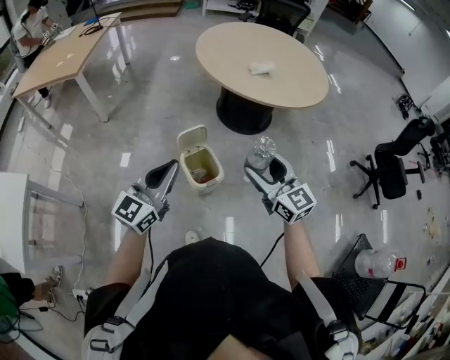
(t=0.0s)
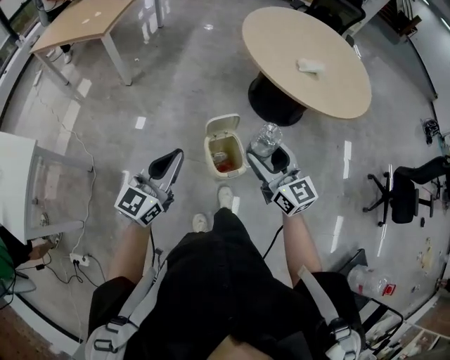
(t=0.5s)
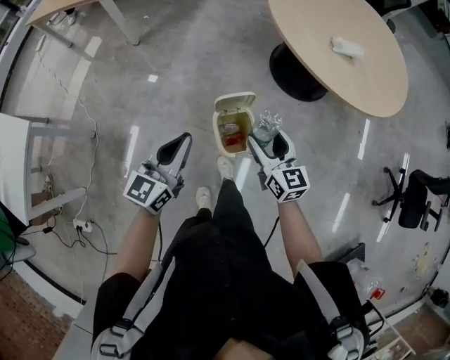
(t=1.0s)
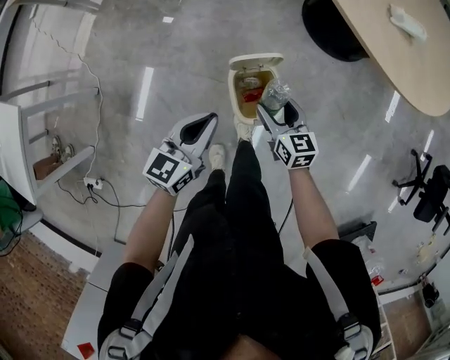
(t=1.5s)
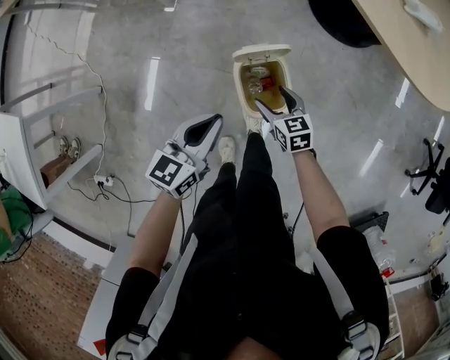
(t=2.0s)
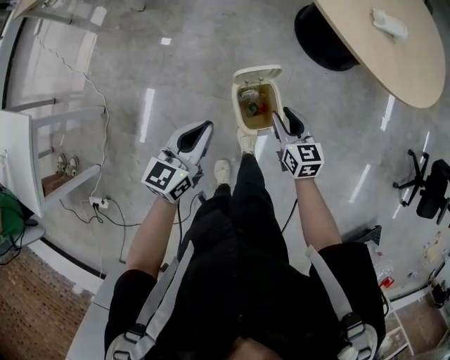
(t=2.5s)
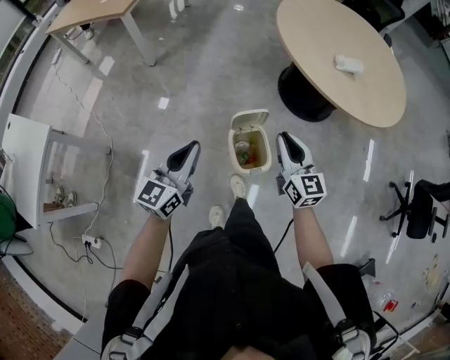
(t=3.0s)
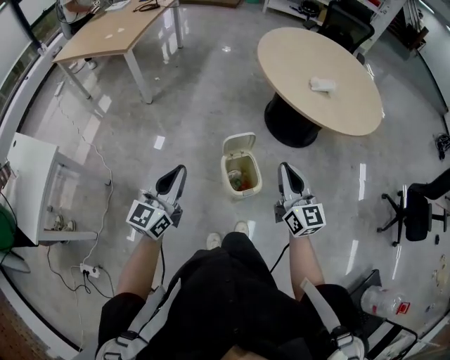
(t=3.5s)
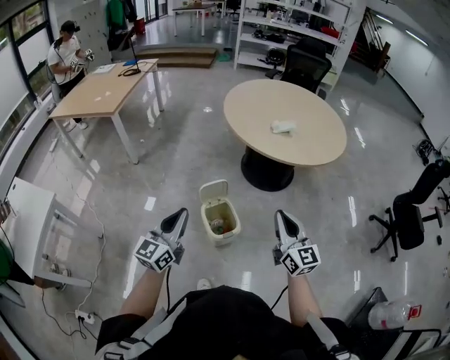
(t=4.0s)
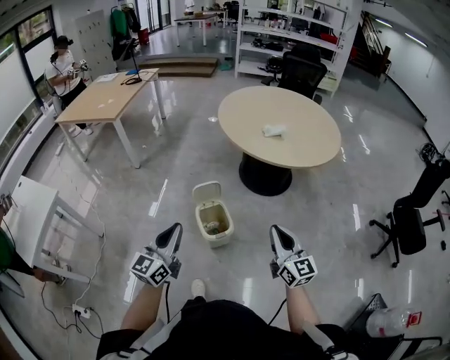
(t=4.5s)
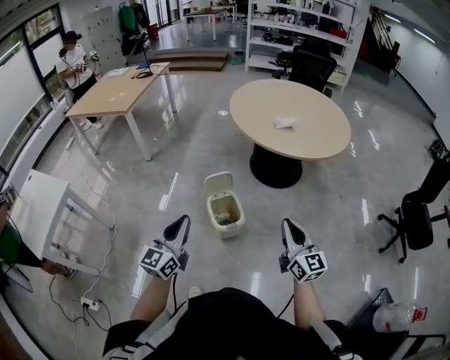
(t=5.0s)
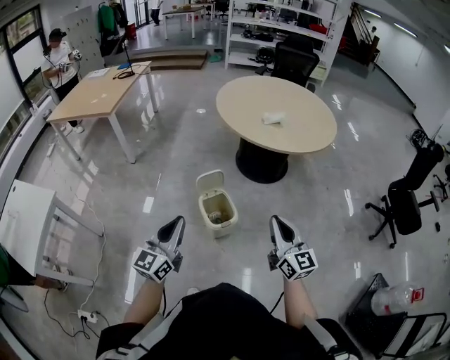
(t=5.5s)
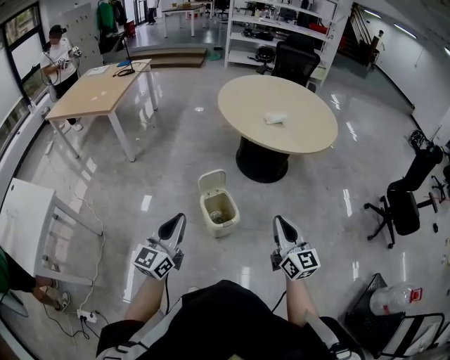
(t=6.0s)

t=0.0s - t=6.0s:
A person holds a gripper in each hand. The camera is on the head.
t=0.0s - t=2.0s: Both grippers travel together downward and forward, roughly 40 cm. The left gripper changes its angle by some 40 degrees; the right gripper tilts its fingers some 40 degrees downward.
t=2.0s - t=4.0s: The right gripper shifts some 50 cm upward and backward, tips its fingers upward by some 50 degrees, and closes its fingers; the left gripper shifts approximately 30 cm upward and backward, and swivels roughly 30 degrees.
t=4.0s - t=6.0s: The grippers both shift backward by approximately 10 cm.

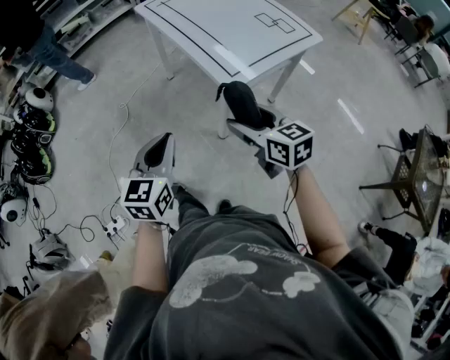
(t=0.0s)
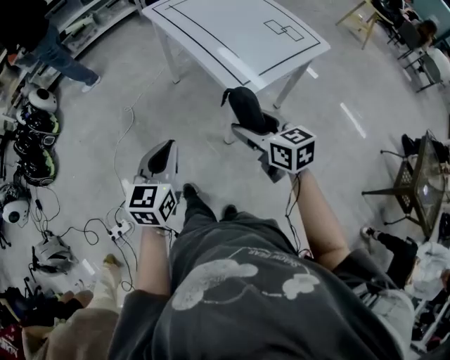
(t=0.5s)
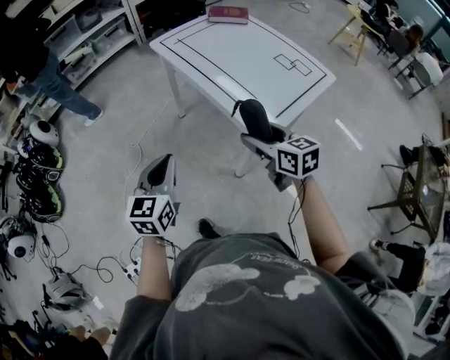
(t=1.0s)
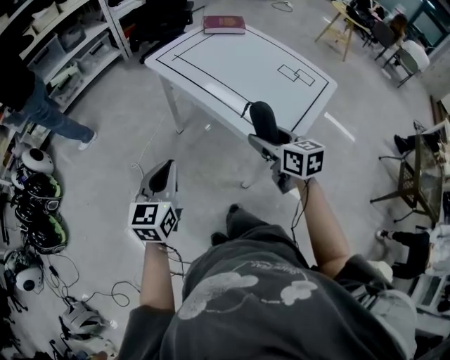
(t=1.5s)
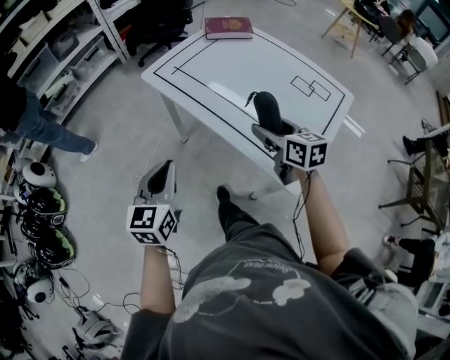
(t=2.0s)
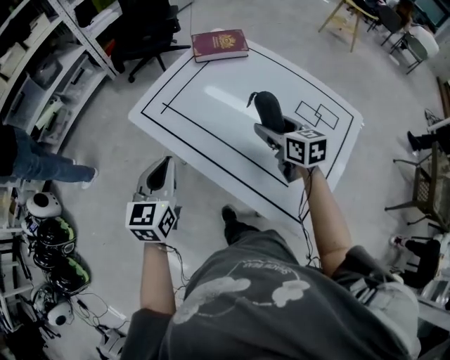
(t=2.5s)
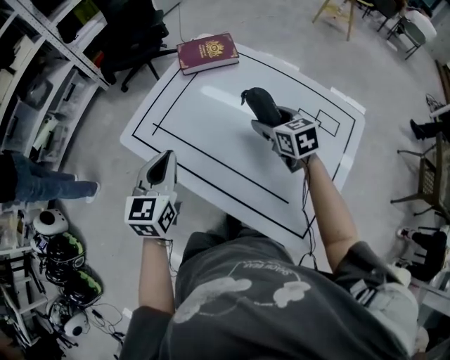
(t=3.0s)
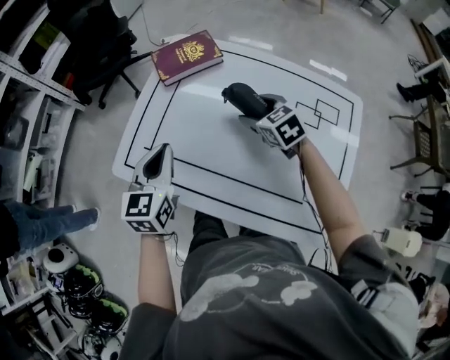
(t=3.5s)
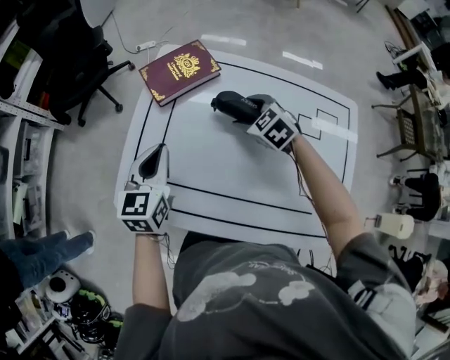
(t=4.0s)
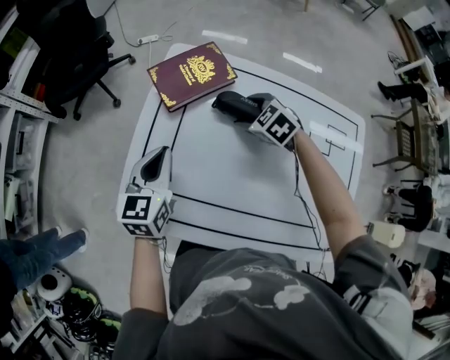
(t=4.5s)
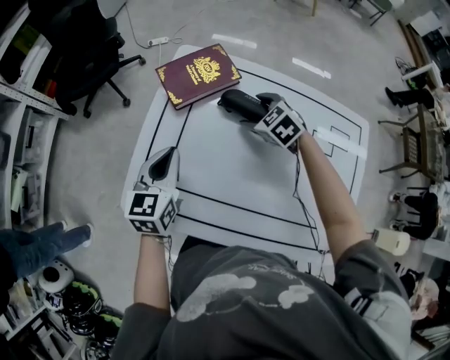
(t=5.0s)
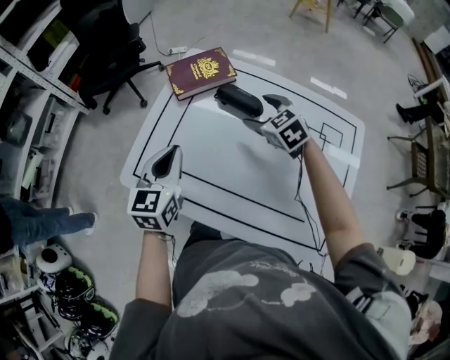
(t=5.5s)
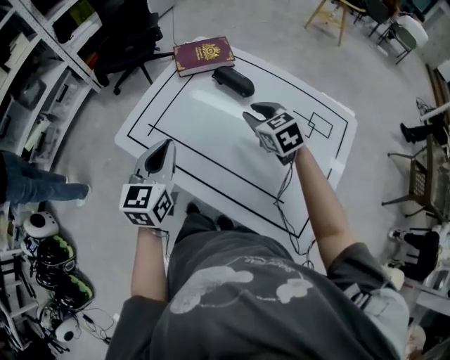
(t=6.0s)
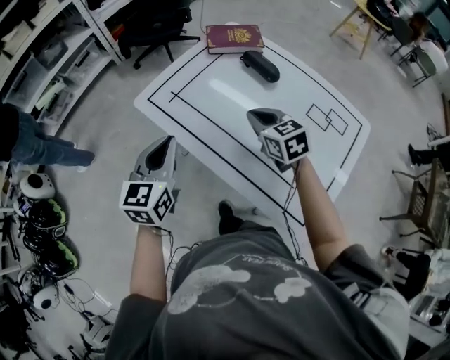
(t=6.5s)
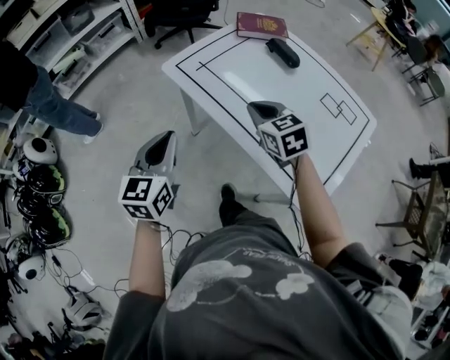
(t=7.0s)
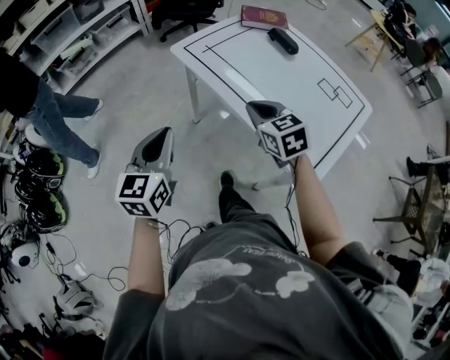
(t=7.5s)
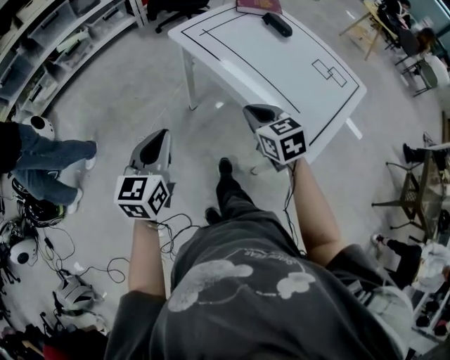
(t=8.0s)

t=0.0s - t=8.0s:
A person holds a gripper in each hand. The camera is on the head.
t=0.0s - t=2.0s: The left gripper travels forward and to the left by about 40 cm. Meanwhile the right gripper travels forward by roughly 35 cm, and changes its angle by roughly 20 degrees.
t=2.0s - t=4.0s: Both grippers travel together forward, about 40 cm. The right gripper swivels some 40 degrees; the left gripper rotates about 30 degrees.
t=4.0s - t=6.0s: The left gripper shifts about 20 cm backward; the right gripper shifts approximately 15 cm backward and upward, and closes.
t=6.0s - t=8.0s: The pair of grippers is taken backward and to the left, approximately 40 cm.

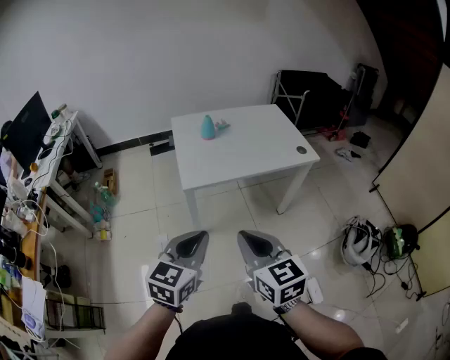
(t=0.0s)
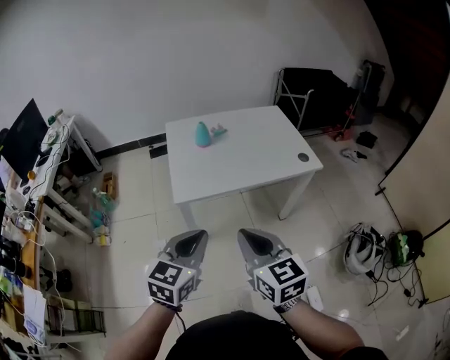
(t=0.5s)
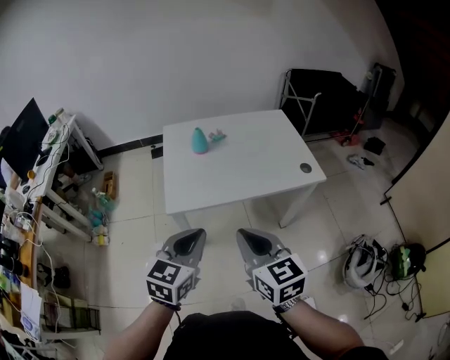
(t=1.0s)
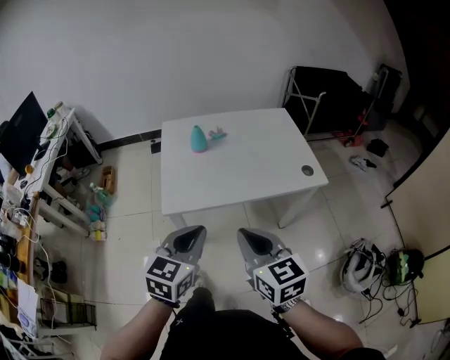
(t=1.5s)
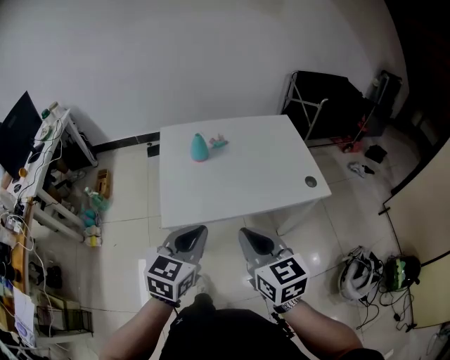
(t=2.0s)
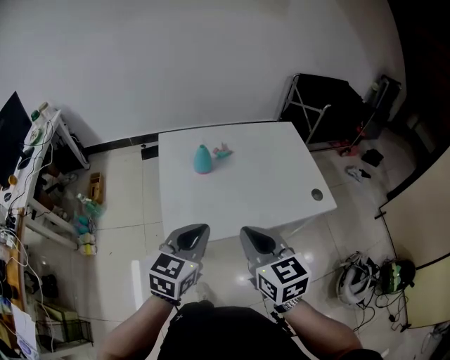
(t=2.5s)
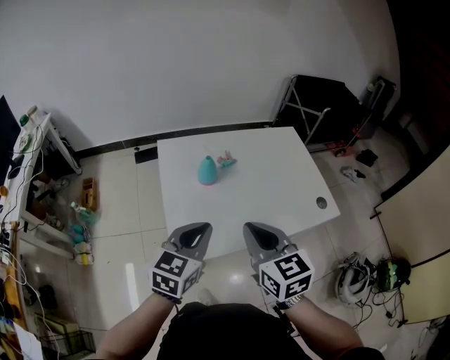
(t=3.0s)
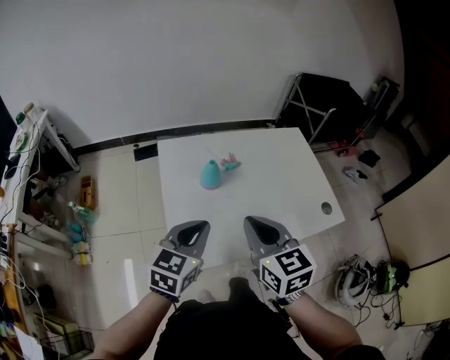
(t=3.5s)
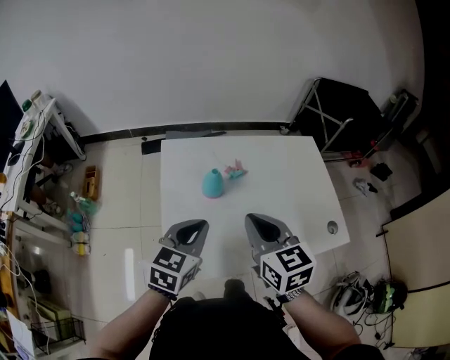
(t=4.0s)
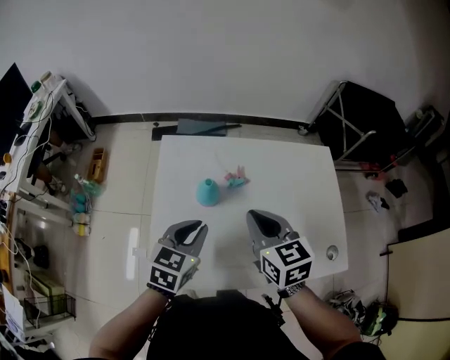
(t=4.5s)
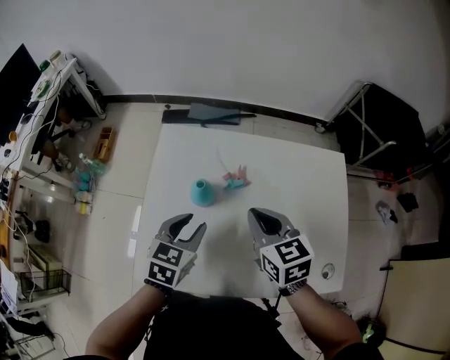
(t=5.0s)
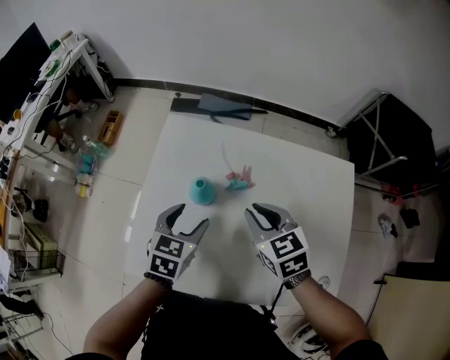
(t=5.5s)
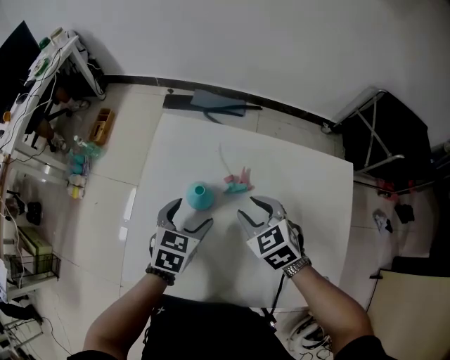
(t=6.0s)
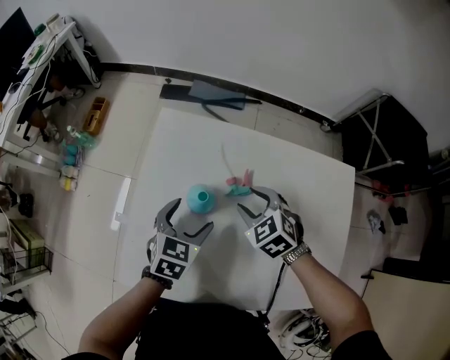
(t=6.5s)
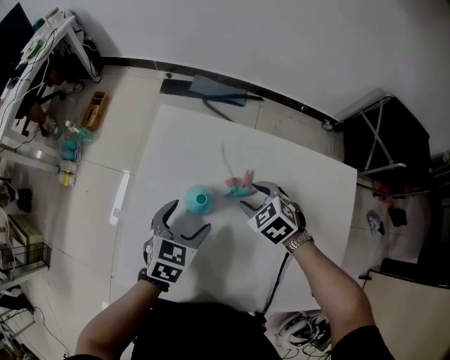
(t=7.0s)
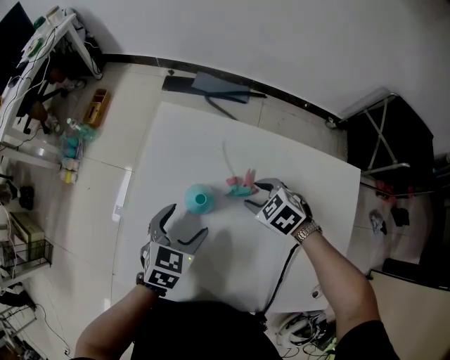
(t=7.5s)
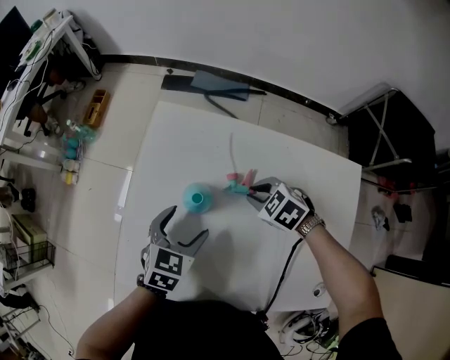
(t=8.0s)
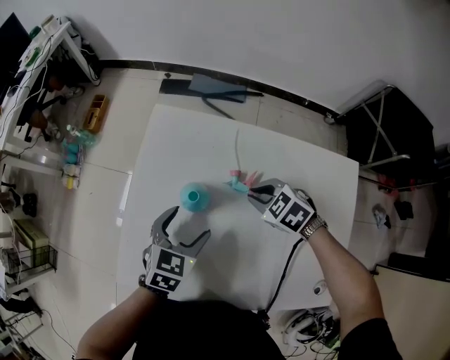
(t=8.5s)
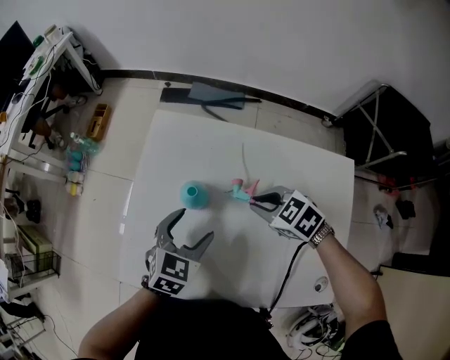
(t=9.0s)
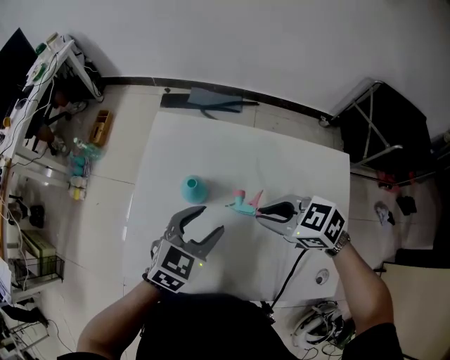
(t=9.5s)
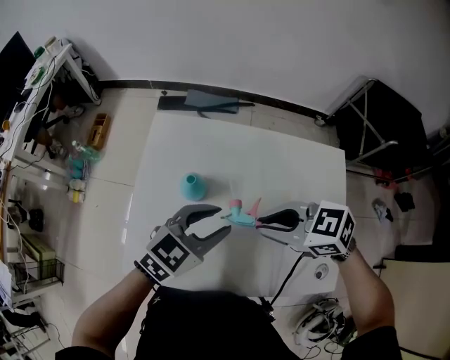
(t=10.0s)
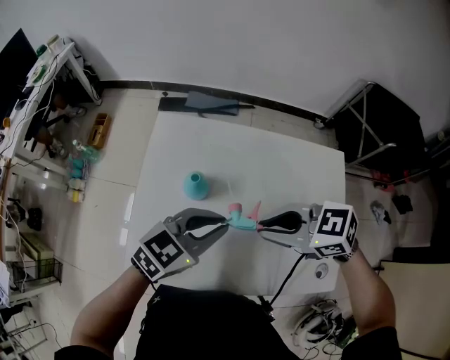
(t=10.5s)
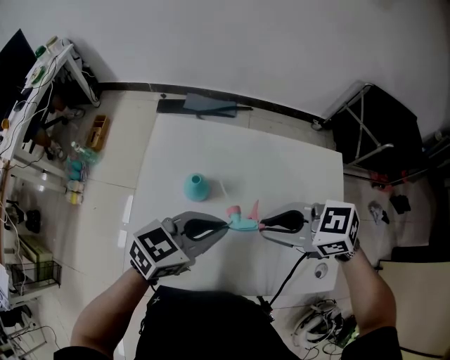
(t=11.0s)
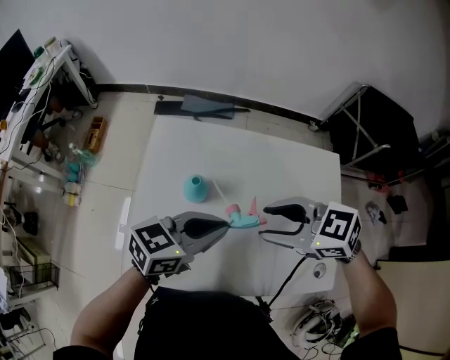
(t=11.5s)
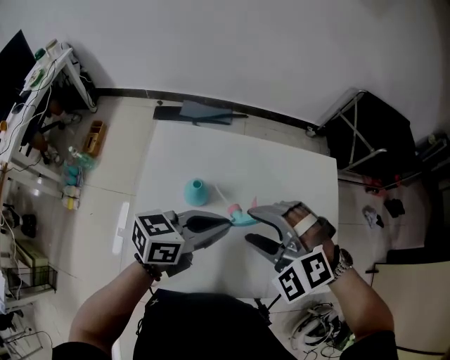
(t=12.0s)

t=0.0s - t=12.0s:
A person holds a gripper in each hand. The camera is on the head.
t=0.0s - t=2.0s: Both grippers move forward, some 25 cm.
t=2.0s - t=4.0s: Both grippers travel together forward, approximately 25 cm.
t=4.0s - t=6.0s: The left gripper goes some 20 cm downward and forward, changes its angle by approximately 30 degrees, and opens. The right gripper heads downward, forward and to the right, covering some 25 cm, turns by about 50 degrees, and opens.
t=6.0s - t=8.0s: The right gripper is displaced downward by approximately 10 cm, and turns by approximately 30 degrees.
t=8.0s - t=10.0s: The grippers both shift upward by about 15 cm. The left gripper turns by approximately 30 degrees, and closes; the right gripper turns by approximately 30 degrees.
t=10.0s - t=12.0s: The right gripper ends up approximately 5 cm from where it was, rolls counterclockwise, seen from behind, by about 50 degrees, and opens; the left gripper changes its angle by roughly 30 degrees.
